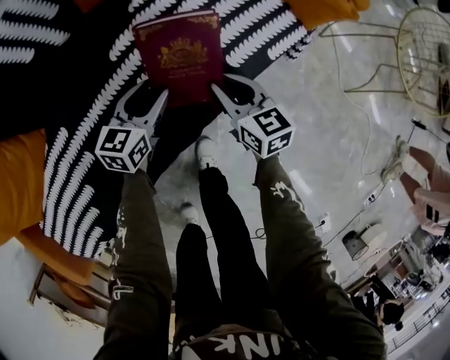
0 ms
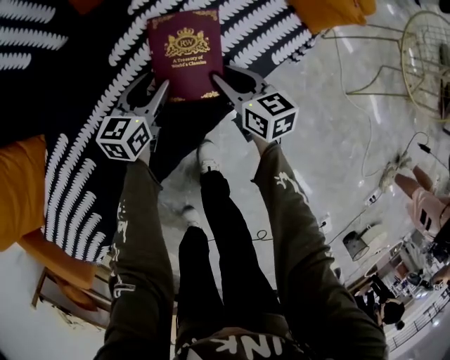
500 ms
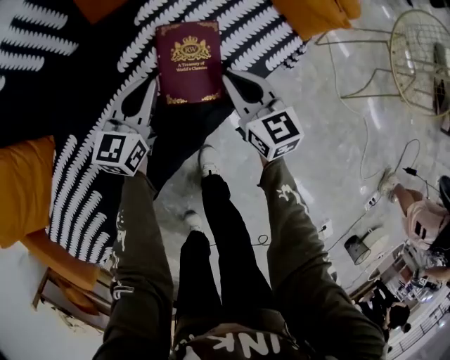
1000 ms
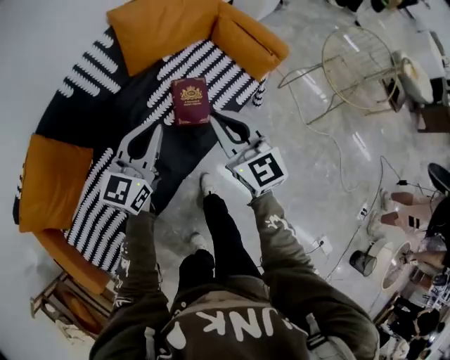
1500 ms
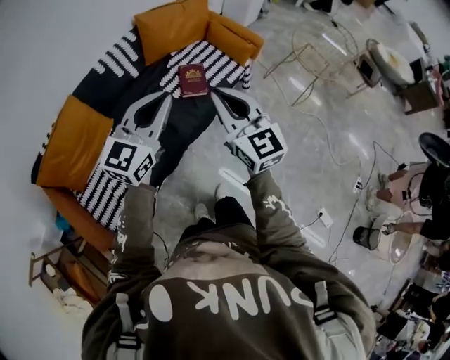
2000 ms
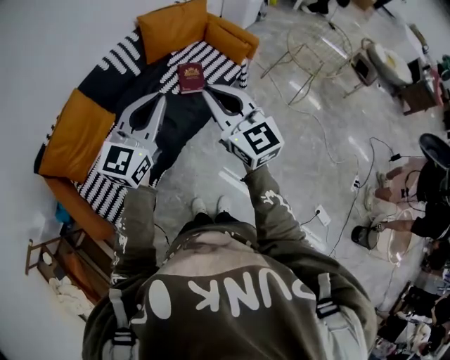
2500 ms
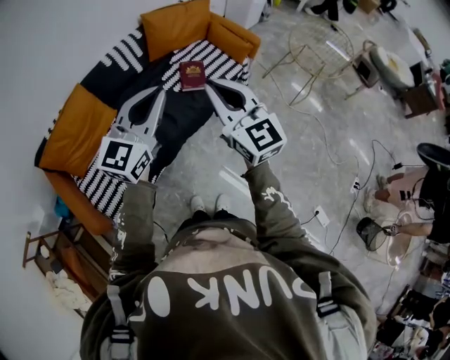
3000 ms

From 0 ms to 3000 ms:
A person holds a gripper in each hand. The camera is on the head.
From 0 ms to 1500 ms: The two grippers go some 40 cm upward. The right gripper swivels roughly 30 degrees; the left gripper swivels roughly 30 degrees, and closes its fingers.
From 1500 ms to 3000 ms: Both grippers move backward and upward, roughly 40 cm.

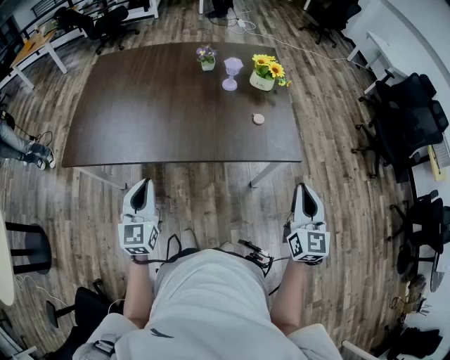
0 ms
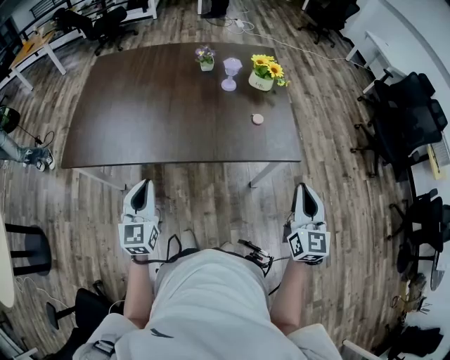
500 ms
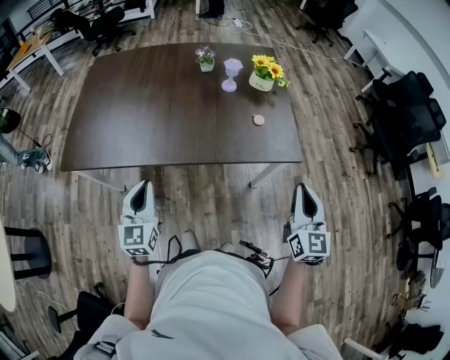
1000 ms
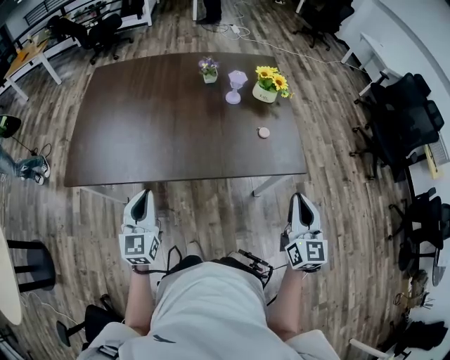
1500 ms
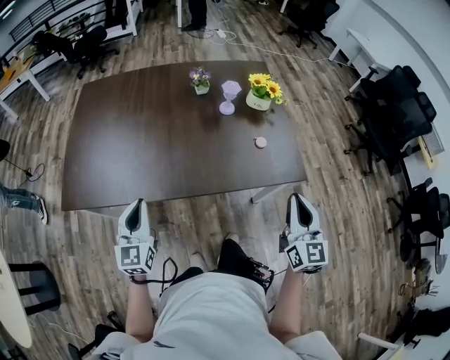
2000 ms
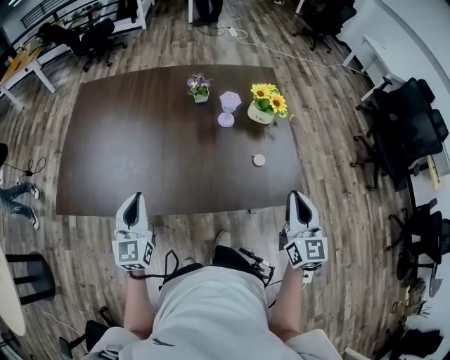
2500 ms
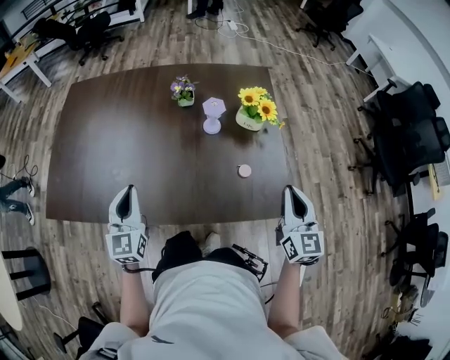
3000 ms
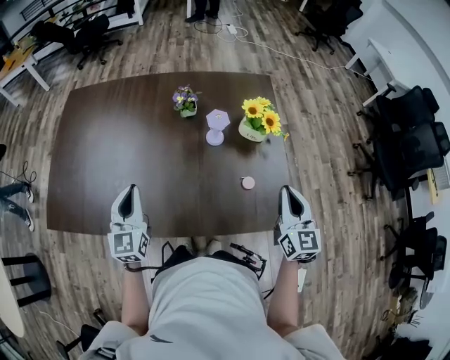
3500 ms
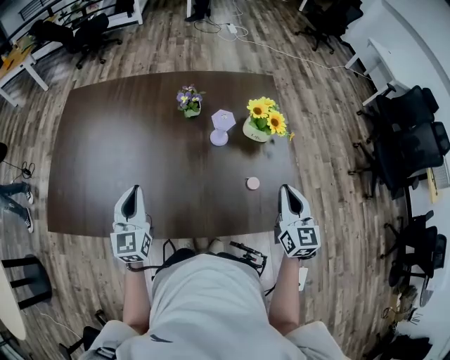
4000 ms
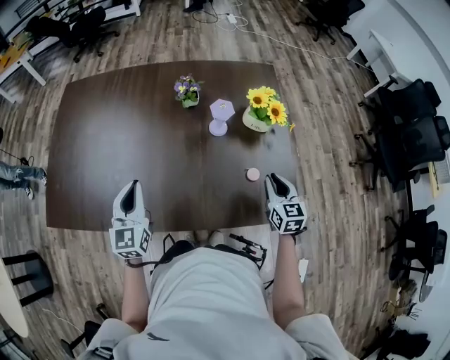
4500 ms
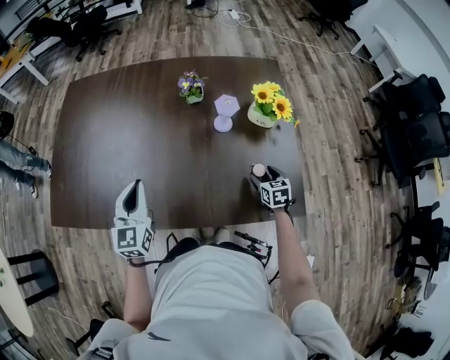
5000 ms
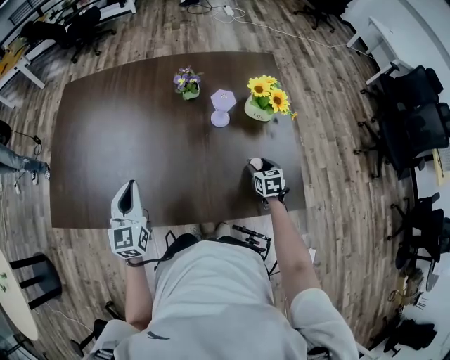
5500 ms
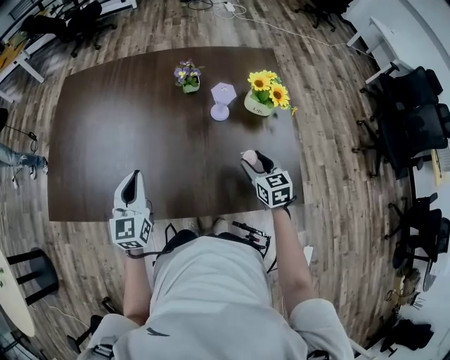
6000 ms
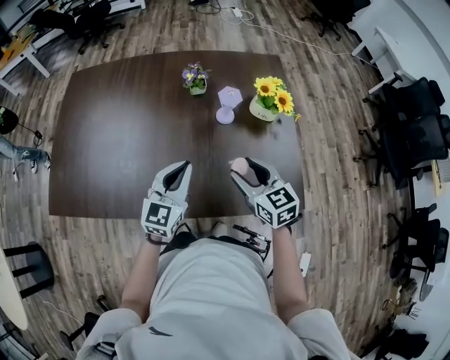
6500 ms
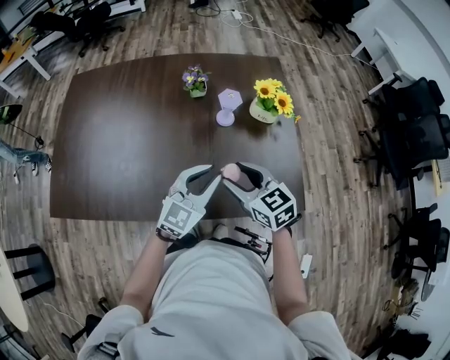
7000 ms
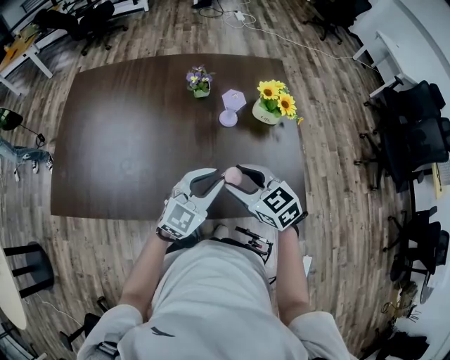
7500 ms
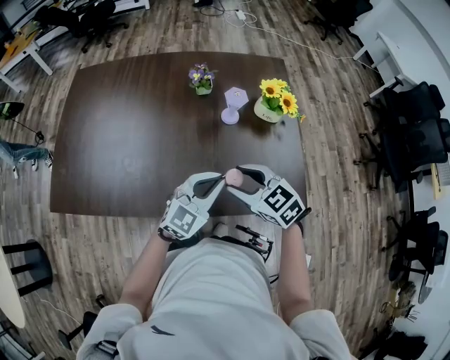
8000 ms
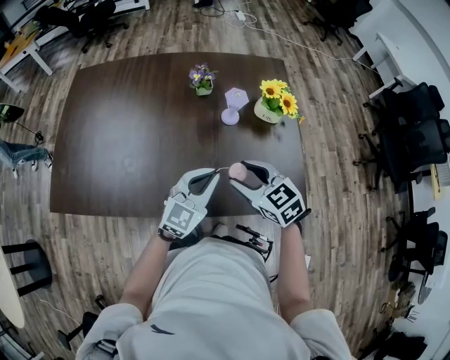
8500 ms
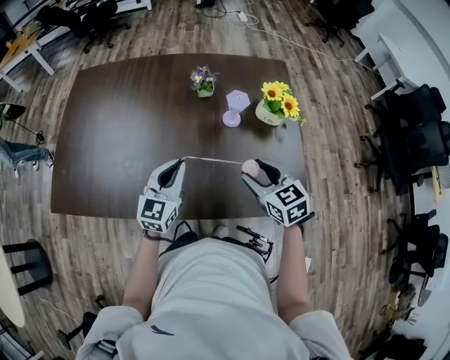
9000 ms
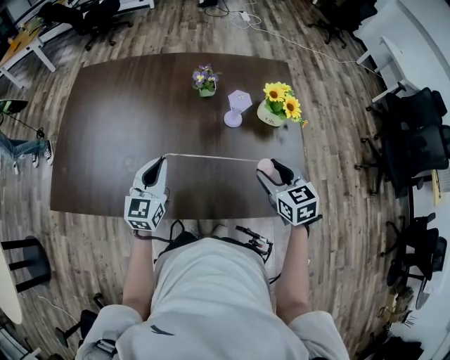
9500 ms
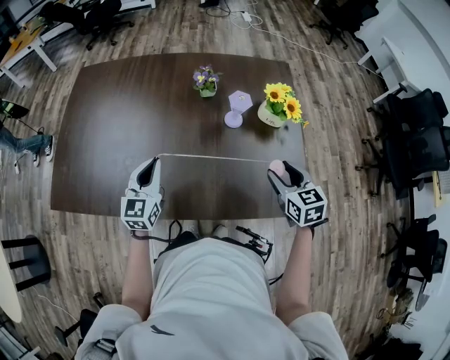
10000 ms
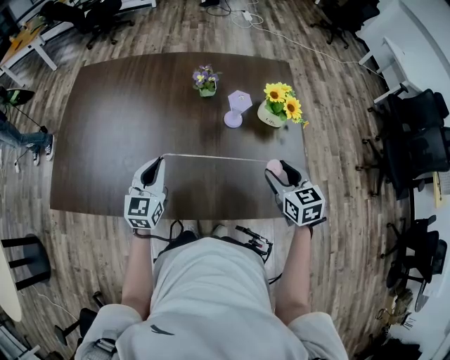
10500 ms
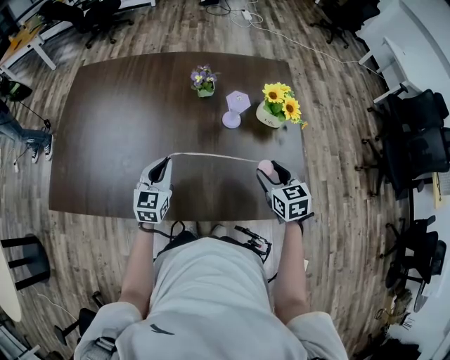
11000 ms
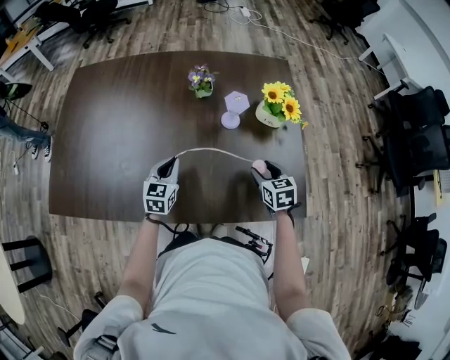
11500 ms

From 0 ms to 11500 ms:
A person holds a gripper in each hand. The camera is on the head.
From 0 ms to 2000 ms: The left gripper is displaced forward and to the left by about 10 cm, while the right gripper moves to the left and forward, roughly 10 cm.
From 2000 ms to 4000 ms: The grippers both shift forward by some 25 cm.
From 4000 ms to 6000 ms: The right gripper is displaced downward and to the left by some 15 cm, turns by some 30 degrees, and opens.
From 6000 ms to 7500 ms: The left gripper goes about 20 cm to the right, and changes its angle by approximately 40 degrees. The right gripper travels upward, to the left and backward by some 15 cm, and rotates about 30 degrees.
From 7500 ms to 9500 ms: The left gripper moves to the left, some 15 cm, and turns by approximately 30 degrees; the right gripper goes approximately 10 cm to the right.
From 9500 ms to 11500 ms: Both grippers travel together downward, some 10 cm.

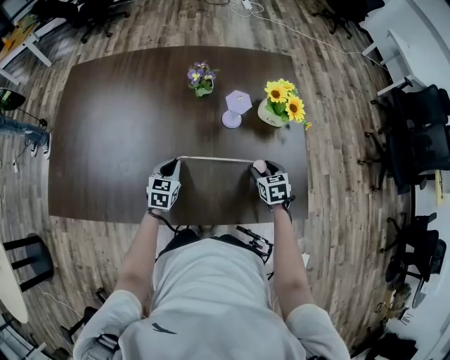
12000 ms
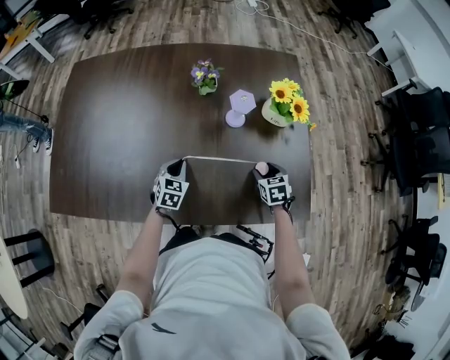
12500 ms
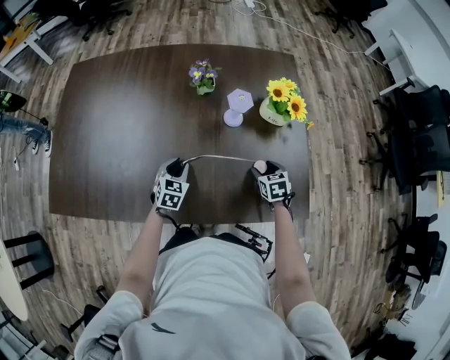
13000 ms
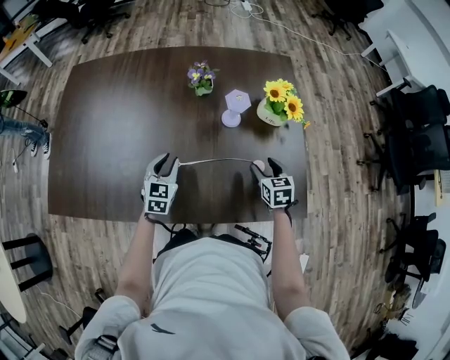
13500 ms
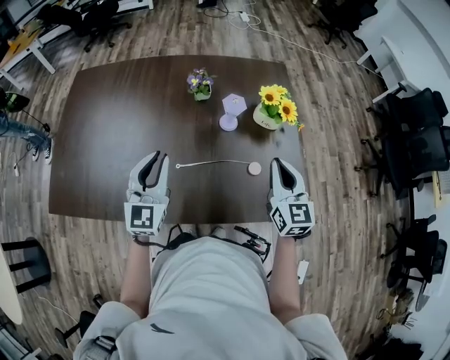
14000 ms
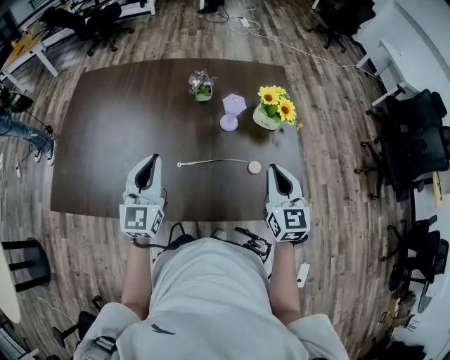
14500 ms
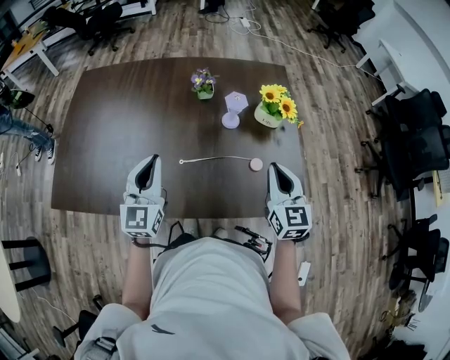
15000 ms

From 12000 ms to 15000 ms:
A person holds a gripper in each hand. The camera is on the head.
From 12000 ms to 13500 ms: The left gripper heads upward, covering roughly 5 cm, and opens its fingers.
From 13500 ms to 15000 ms: Both grippers move upward, some 20 cm. The left gripper changes its angle by some 30 degrees, and closes up. The right gripper tilts its fingers approximately 30 degrees upward, and closes up.

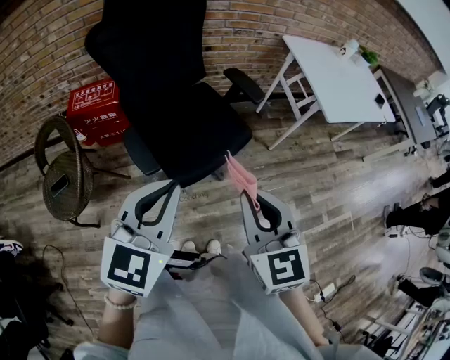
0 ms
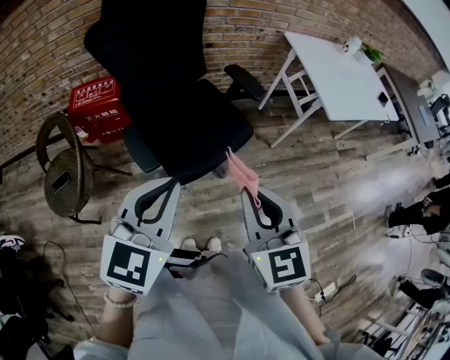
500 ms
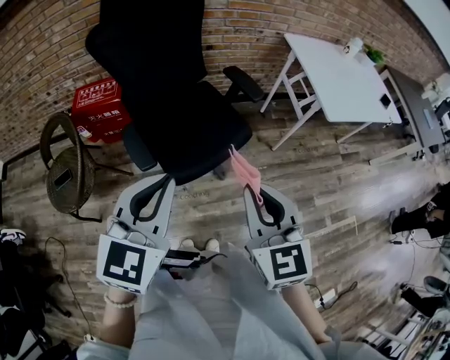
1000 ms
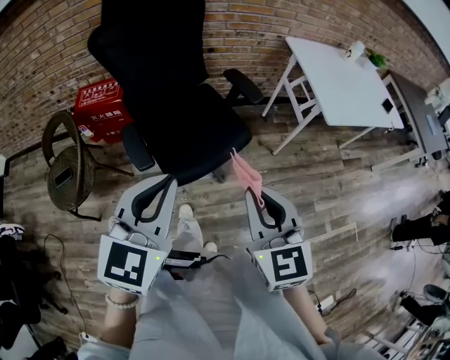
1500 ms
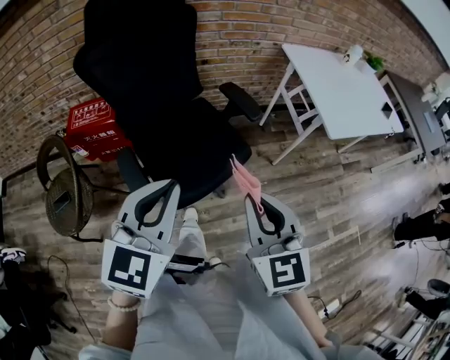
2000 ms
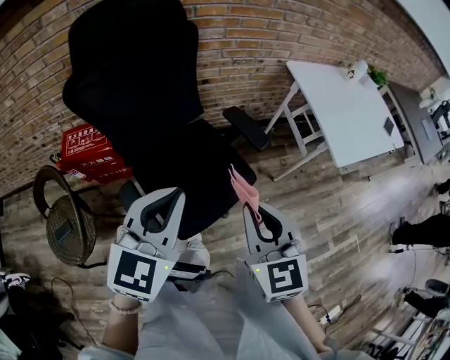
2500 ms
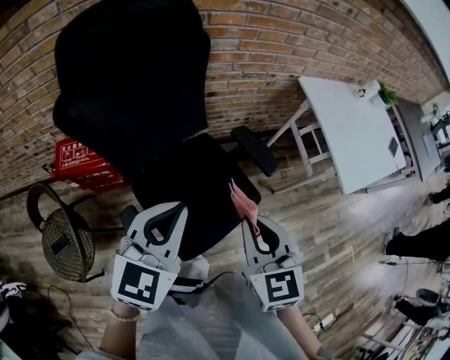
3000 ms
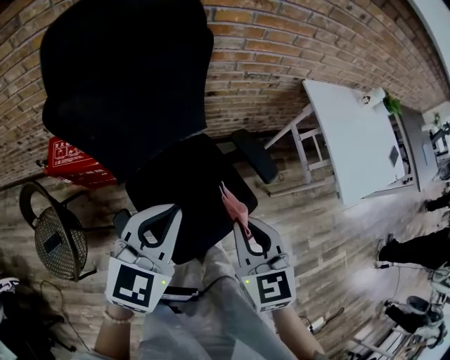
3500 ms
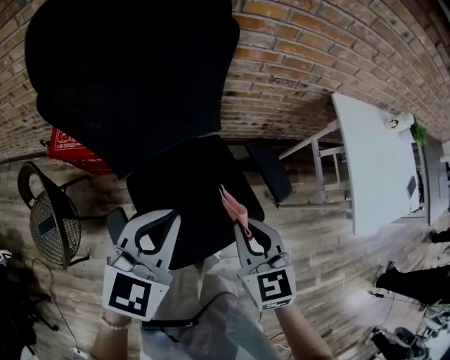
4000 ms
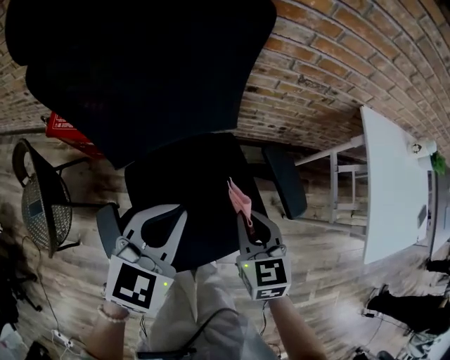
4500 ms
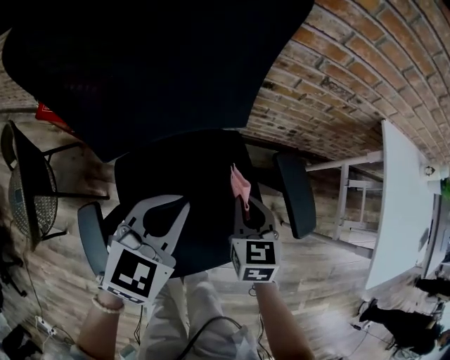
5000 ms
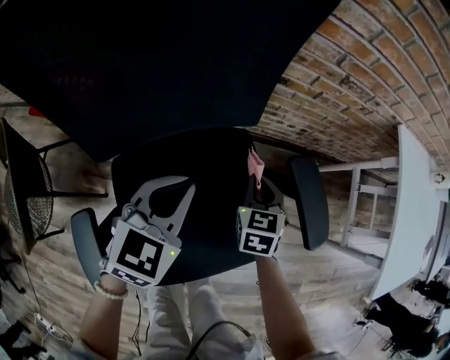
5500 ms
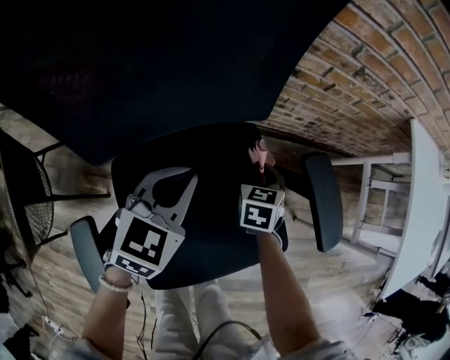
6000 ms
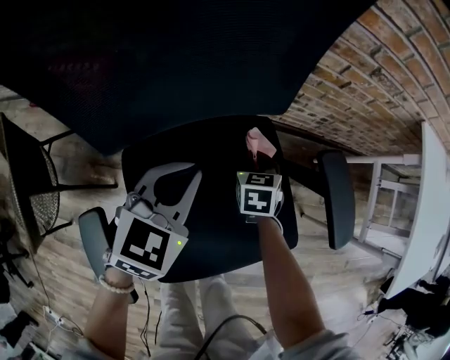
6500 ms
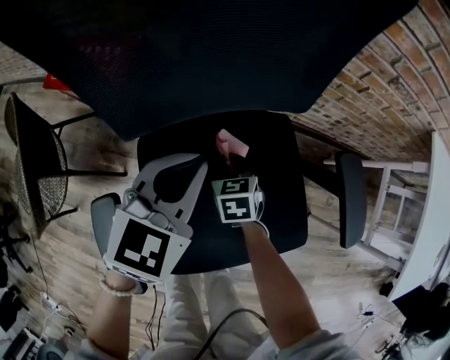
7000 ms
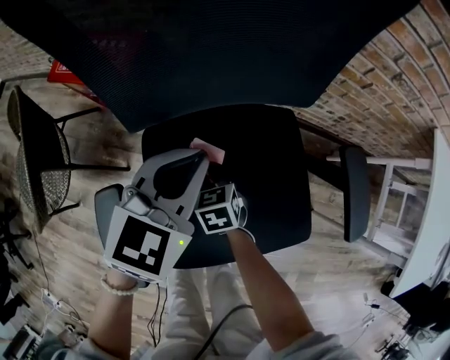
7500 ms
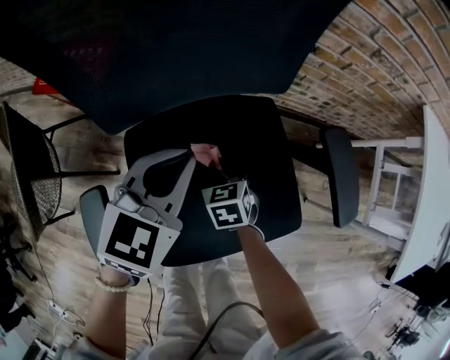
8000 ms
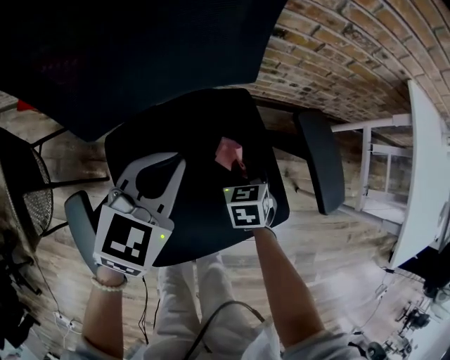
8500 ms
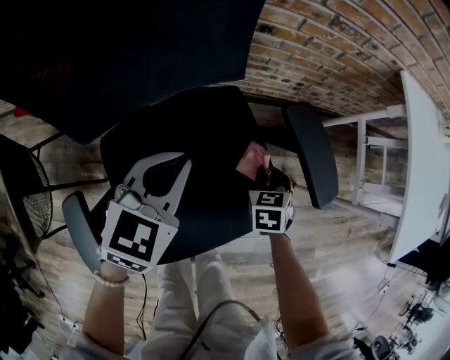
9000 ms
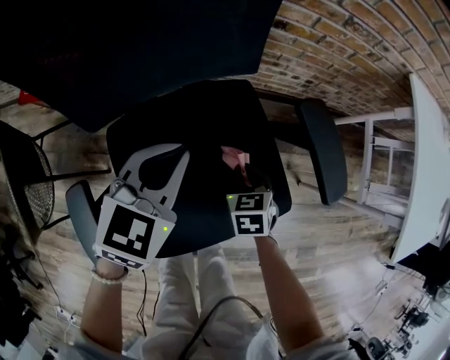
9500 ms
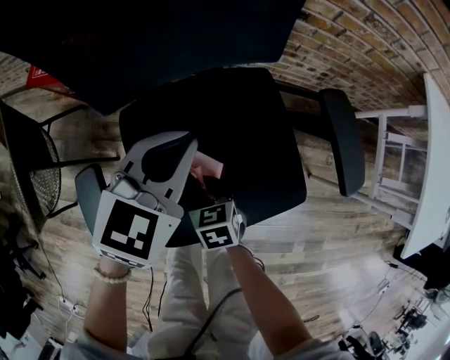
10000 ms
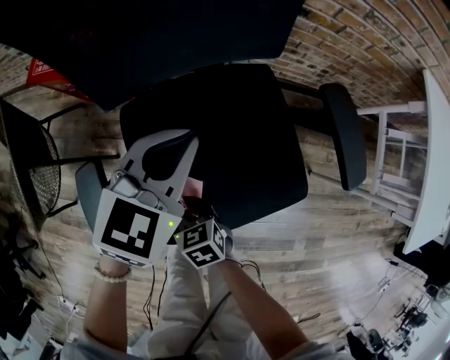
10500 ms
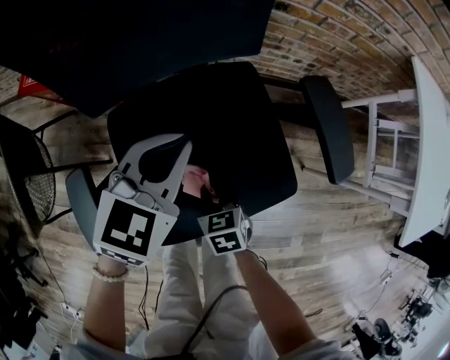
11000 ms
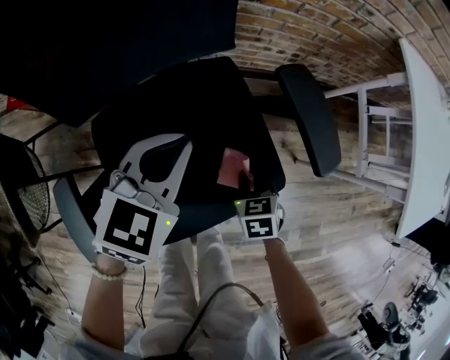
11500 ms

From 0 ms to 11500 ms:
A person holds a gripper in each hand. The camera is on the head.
From 0 ms to 2000 ms: The grippers both shift forward and to the right by some 10 cm.
From 2000 ms to 4000 ms: The two grippers go approximately 35 cm forward.
From 4000 ms to 6000 ms: Both grippers move downward and forward, about 40 cm. The right gripper rotates approximately 30 degrees.
From 6000 ms to 7500 ms: The left gripper changes place by some 10 cm; the right gripper changes place by roughly 25 cm, and rotates roughly 30 degrees.
From 7500 ms to 9500 ms: The left gripper moves approximately 10 cm. Meanwhile the right gripper ends up about 25 cm from where it was, and rotates about 20 degrees.
From 9500 ms to 11500 ms: The left gripper moves approximately 5 cm.
